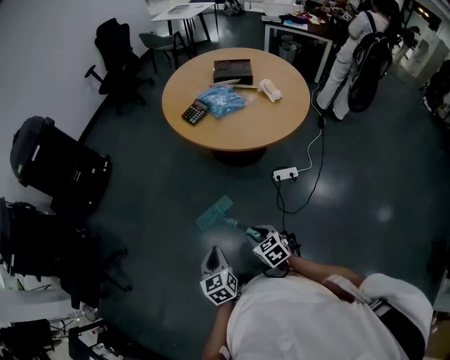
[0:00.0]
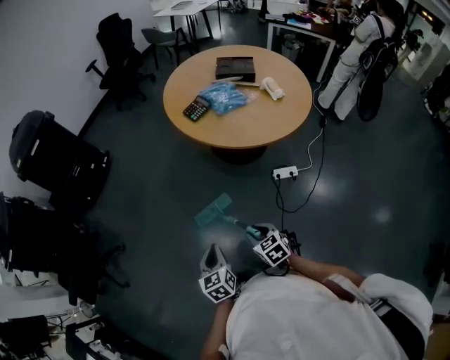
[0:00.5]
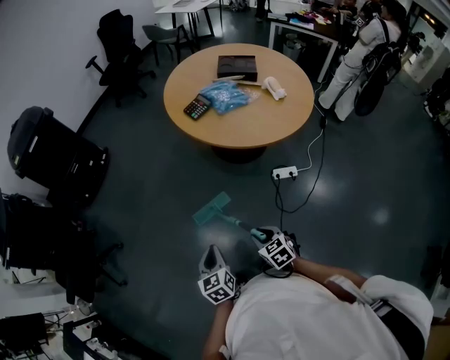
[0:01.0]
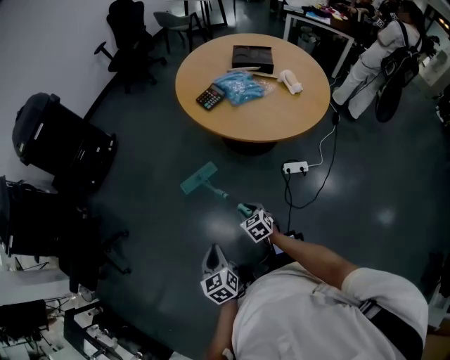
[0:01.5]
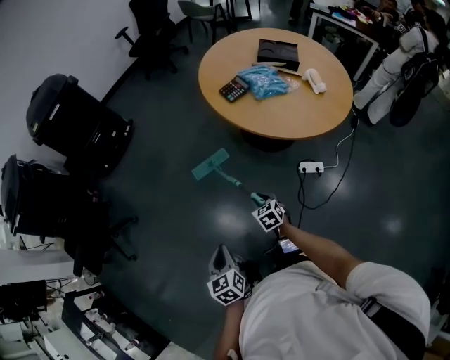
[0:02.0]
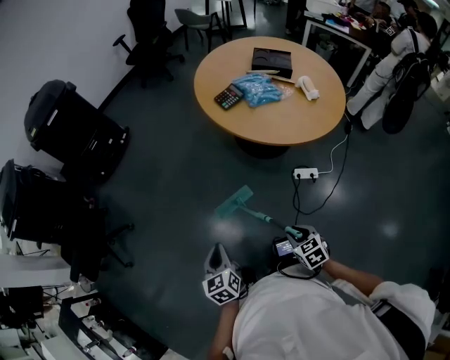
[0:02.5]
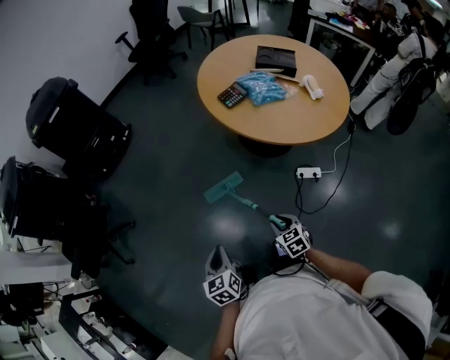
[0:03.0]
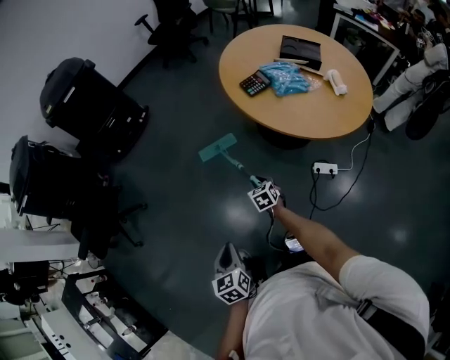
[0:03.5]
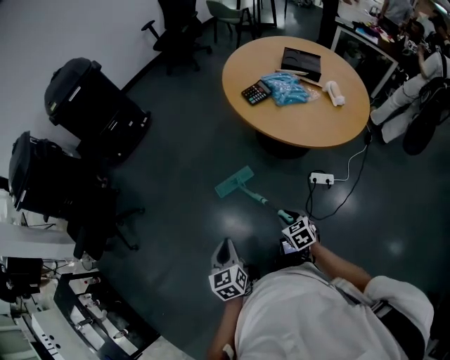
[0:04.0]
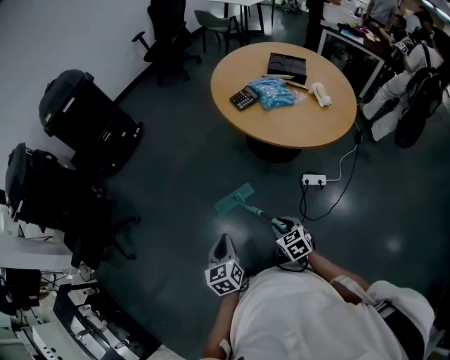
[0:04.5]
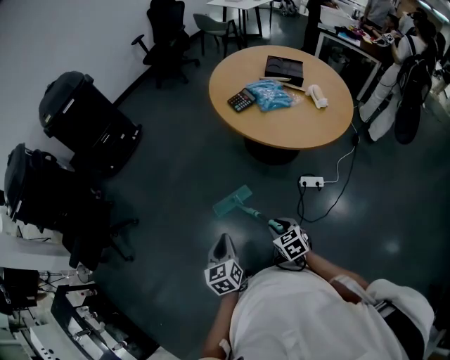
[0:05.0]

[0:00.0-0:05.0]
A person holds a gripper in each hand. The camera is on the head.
0:00.0 to 0:02.5: The left gripper travels to the left by roughly 5 cm. The right gripper shifts about 5 cm to the right, and moves approximately 15 cm forward and comes back.
0:02.5 to 0:05.0: The right gripper travels to the left by roughly 5 cm, and travels forward and back again, approximately 25 cm each way.

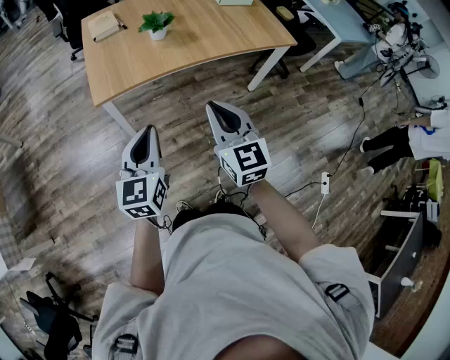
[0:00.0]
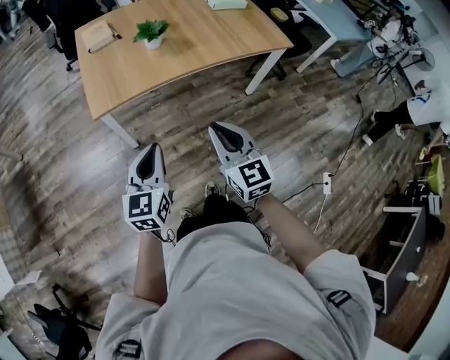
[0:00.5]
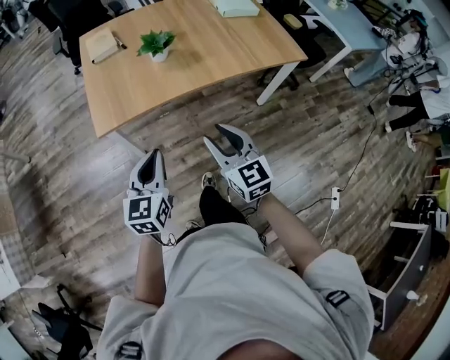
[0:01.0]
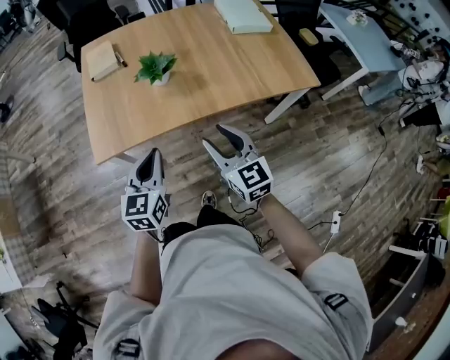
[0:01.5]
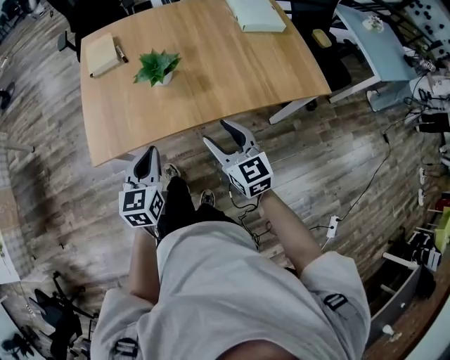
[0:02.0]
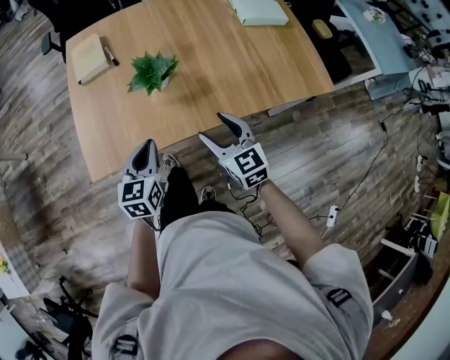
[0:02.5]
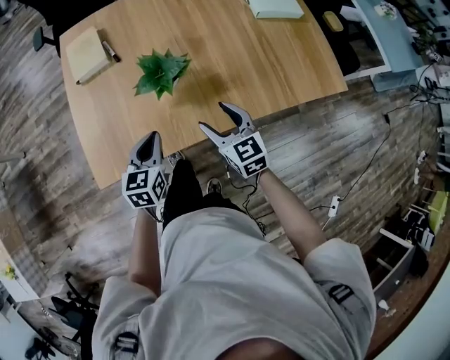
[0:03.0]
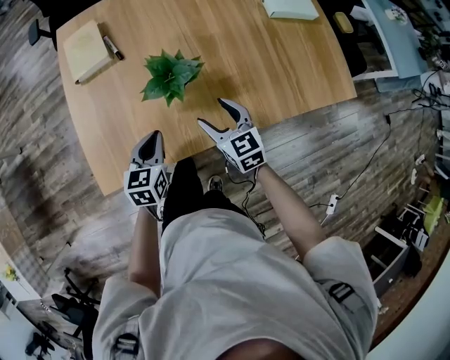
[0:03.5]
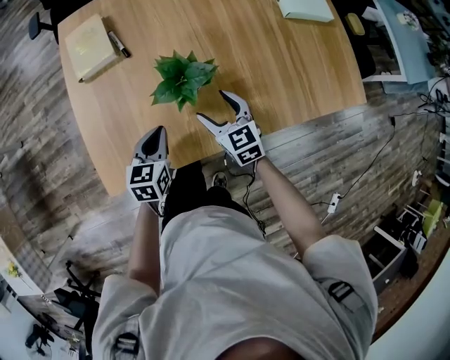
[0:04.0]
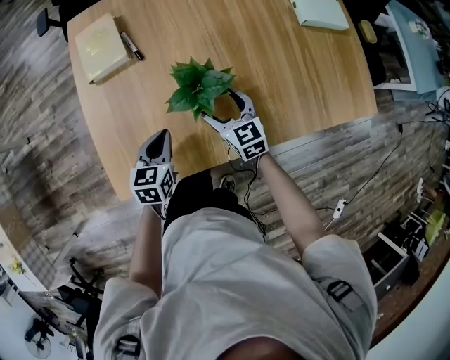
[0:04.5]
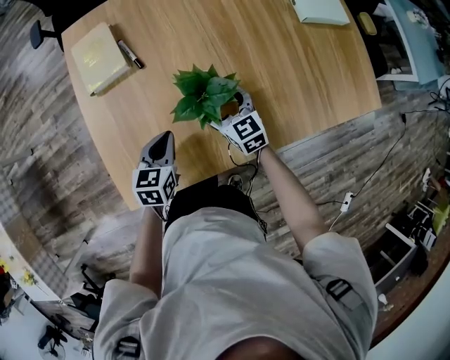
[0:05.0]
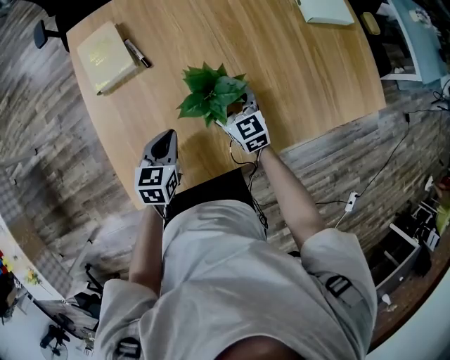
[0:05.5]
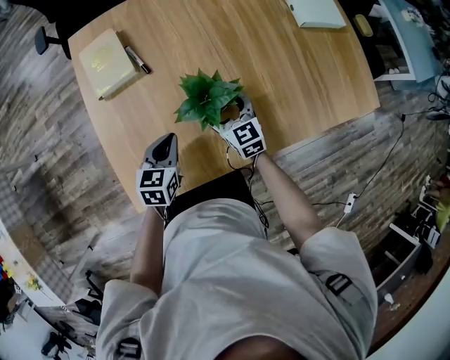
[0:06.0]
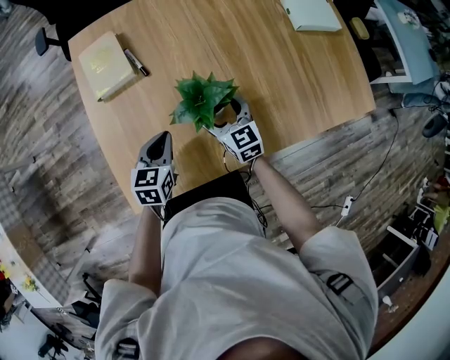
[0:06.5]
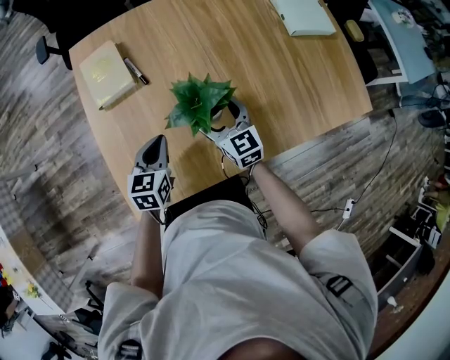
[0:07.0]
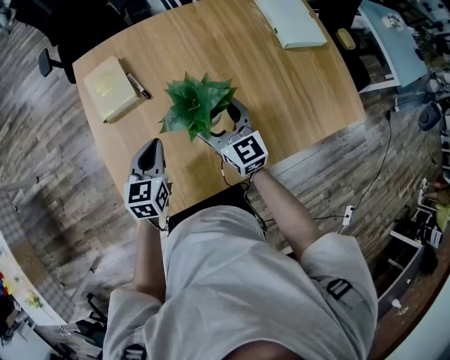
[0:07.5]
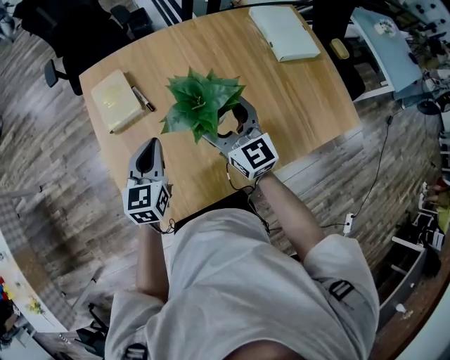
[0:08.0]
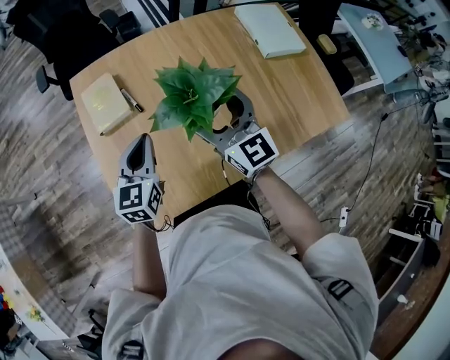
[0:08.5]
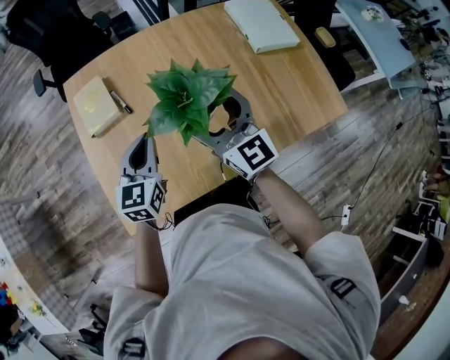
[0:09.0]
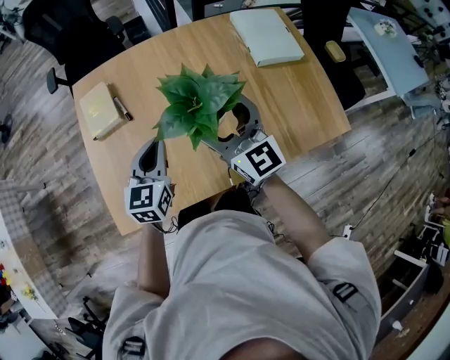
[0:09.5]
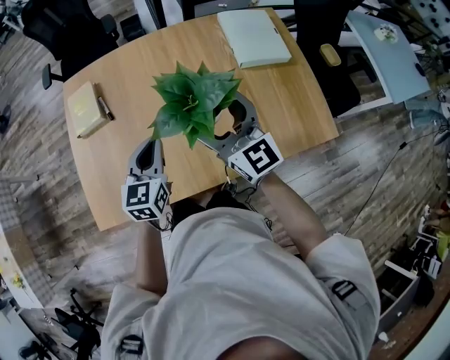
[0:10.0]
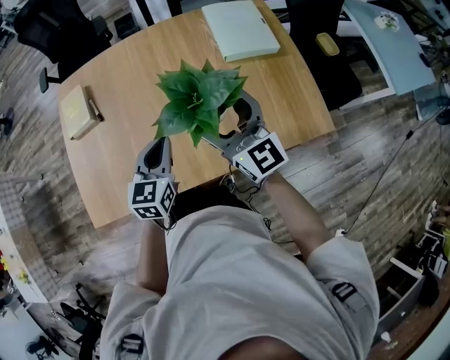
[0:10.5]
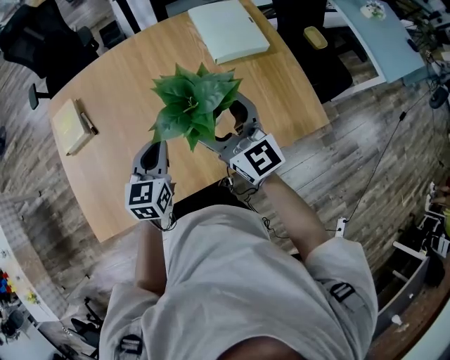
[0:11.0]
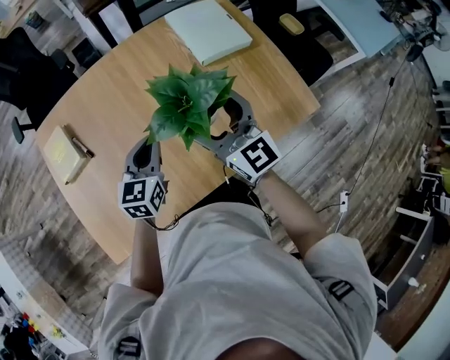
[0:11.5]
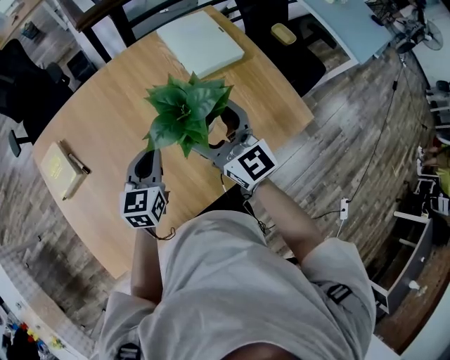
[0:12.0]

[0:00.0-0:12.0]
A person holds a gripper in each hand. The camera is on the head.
0:00.0 to 0:02.0: Both grippers move forward, about 30 cm. The right gripper opens.
0:02.0 to 0:04.0: The grippers both shift forward and downward by approximately 30 cm.
0:04.0 to 0:06.0: The right gripper shifts about 5 cm forward. Meanwhile the left gripper moves about 5 cm.
0:06.0 to 0:08.0: The right gripper shifts approximately 25 cm upward, and rotates about 20 degrees; the left gripper moves upward and forward, some 15 cm, and turns by about 20 degrees.
0:08.0 to 0:10.0: The two grippers go about 25 cm to the right.
0:10.0 to 0:12.0: The two grippers go about 10 cm to the right and forward.

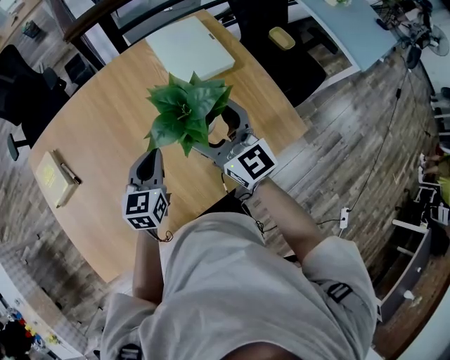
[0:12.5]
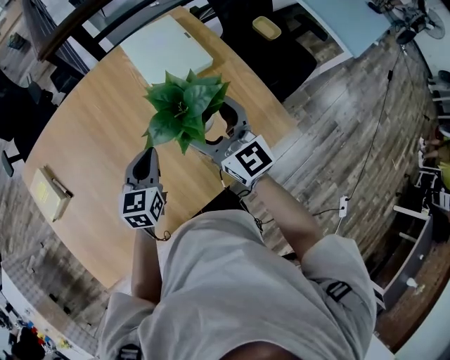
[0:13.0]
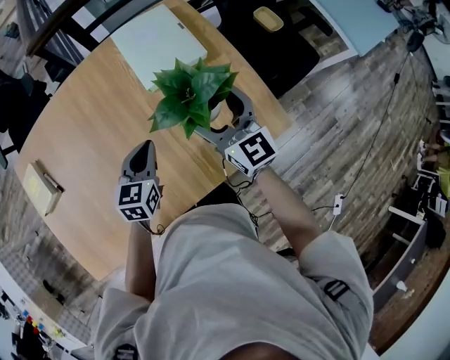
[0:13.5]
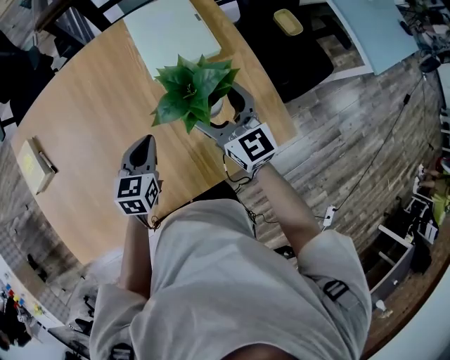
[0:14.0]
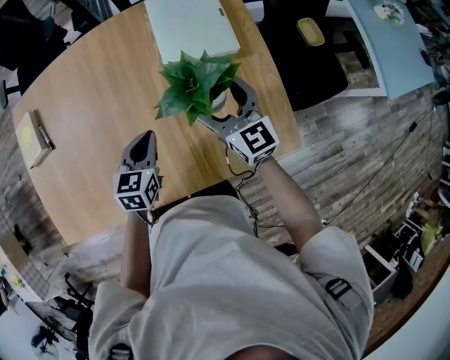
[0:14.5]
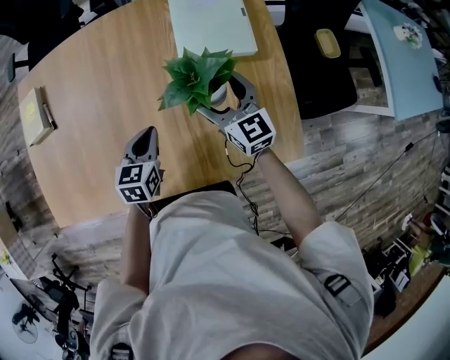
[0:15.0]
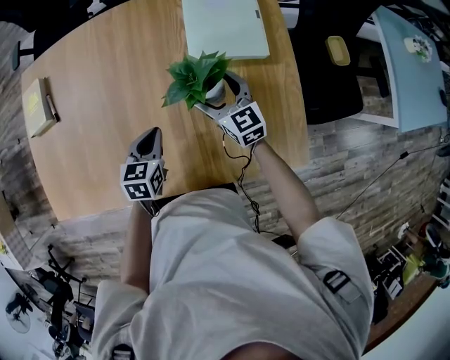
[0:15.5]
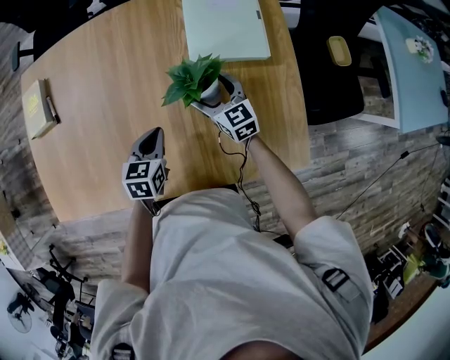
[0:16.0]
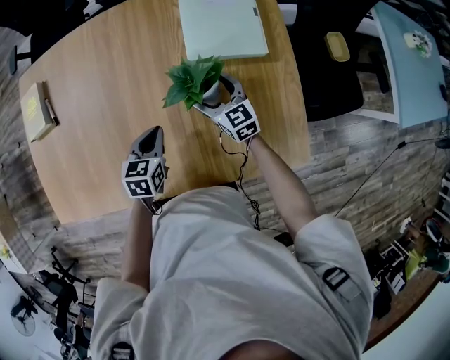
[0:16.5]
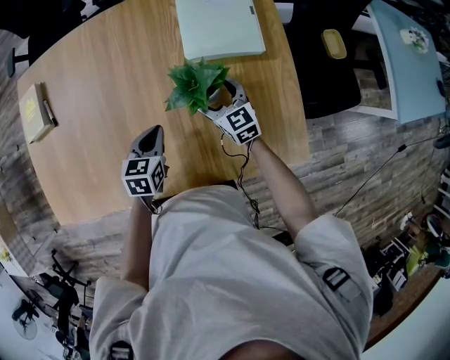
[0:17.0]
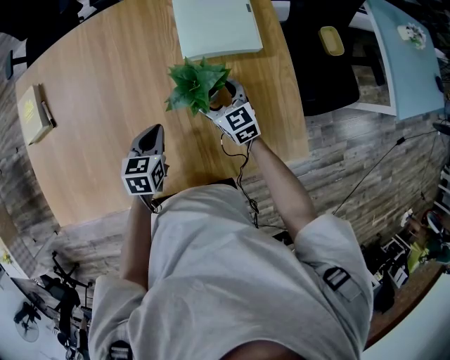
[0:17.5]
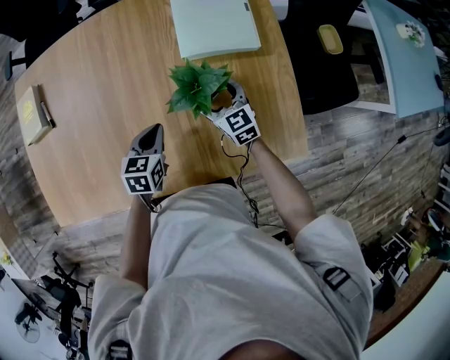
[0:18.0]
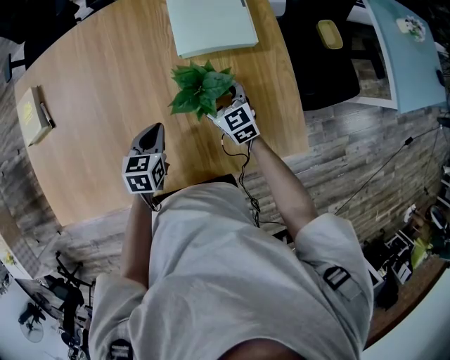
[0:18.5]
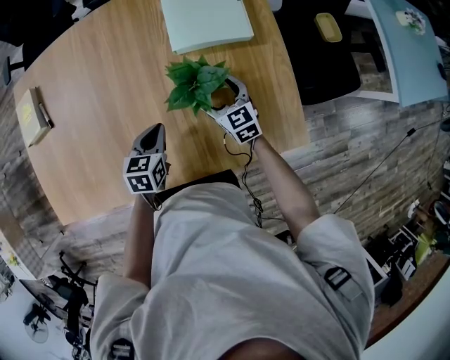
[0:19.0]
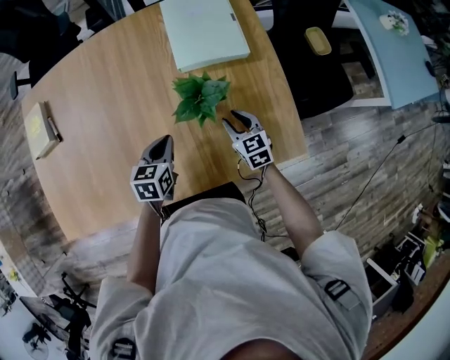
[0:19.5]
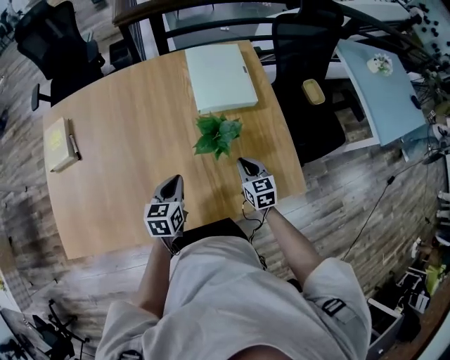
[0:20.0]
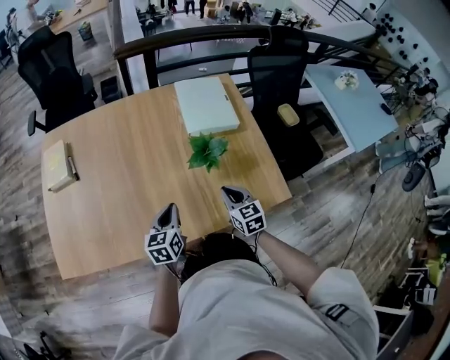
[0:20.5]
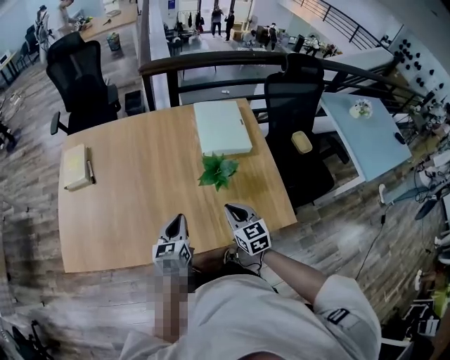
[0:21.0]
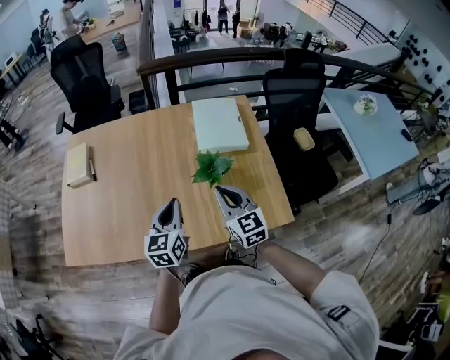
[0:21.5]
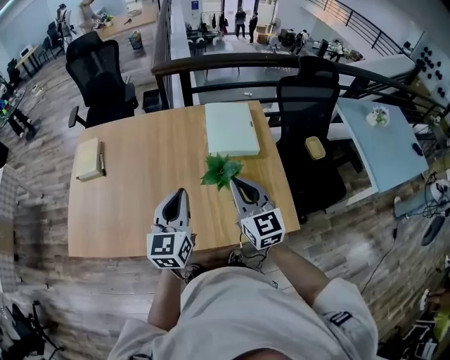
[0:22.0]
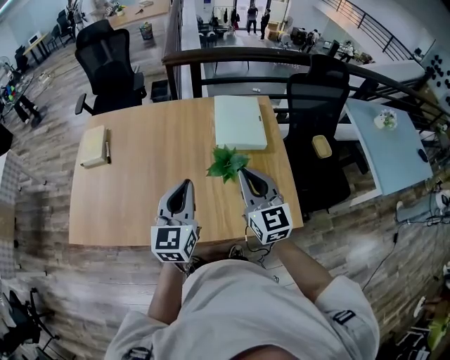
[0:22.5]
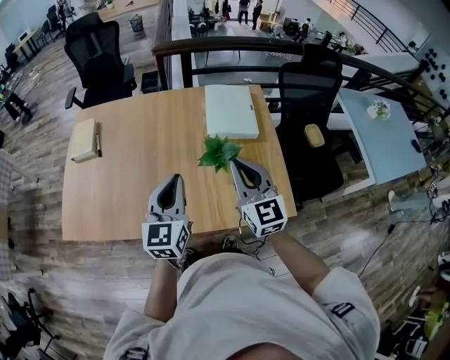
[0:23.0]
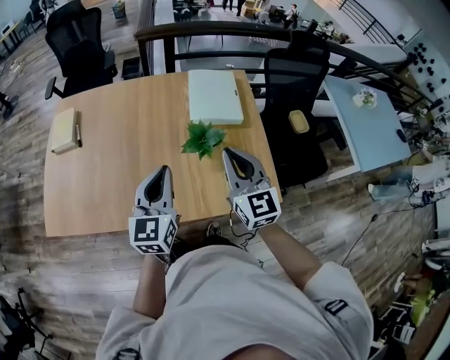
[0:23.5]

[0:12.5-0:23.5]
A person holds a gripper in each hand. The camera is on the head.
0:12.5 to 0:14.5: The right gripper travels downward, to the right and forward by about 20 cm; the left gripper moves to the right and downward, some 10 cm.
0:14.5 to 0:16.0: The left gripper travels downward by approximately 5 cm, while the right gripper is displaced downward and to the left by about 15 cm.
0:16.0 to 0:18.0: The grippers move only a little.
0:18.0 to 0:20.0: The left gripper shifts by about 5 cm, while the right gripper travels backward and to the right by roughly 10 cm, swivels approximately 20 degrees, and closes up.
0:20.0 to 0:21.5: The two grippers go roughly 20 cm upward. The left gripper turns by some 20 degrees, while the right gripper swivels some 30 degrees.
0:21.5 to 0:23.5: The two grippers go roughly 10 cm upward.
